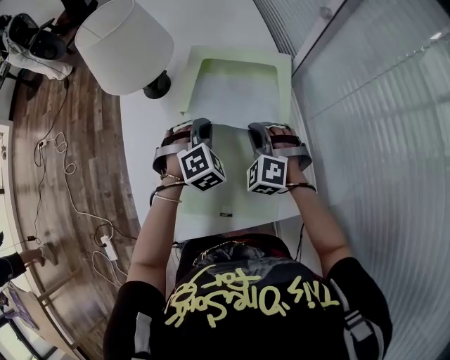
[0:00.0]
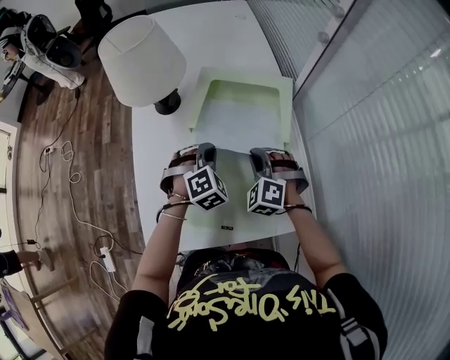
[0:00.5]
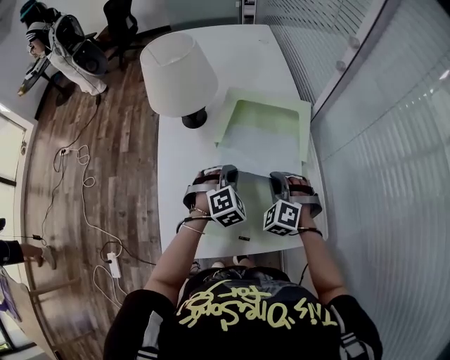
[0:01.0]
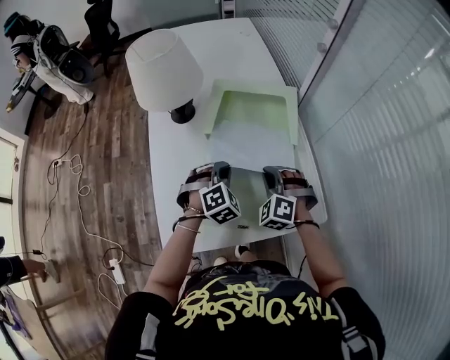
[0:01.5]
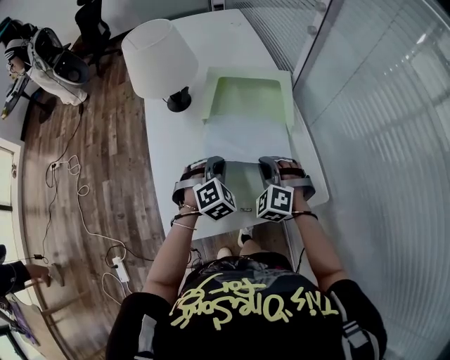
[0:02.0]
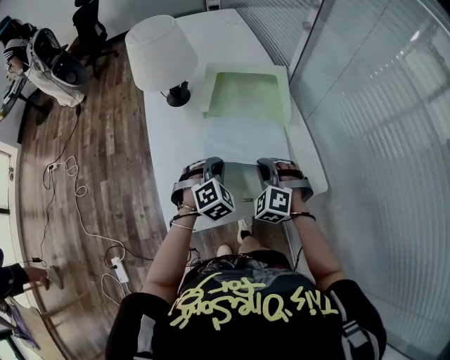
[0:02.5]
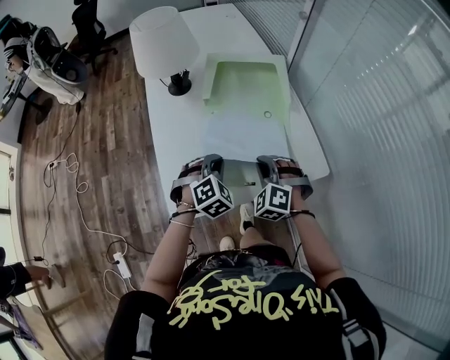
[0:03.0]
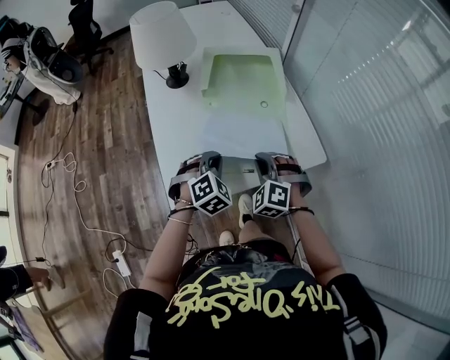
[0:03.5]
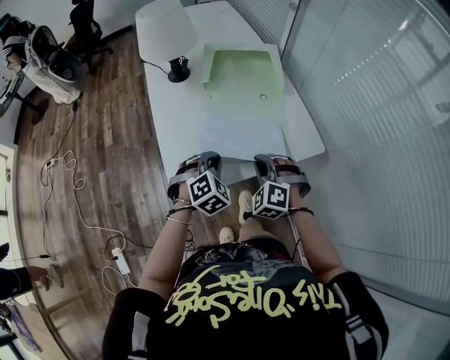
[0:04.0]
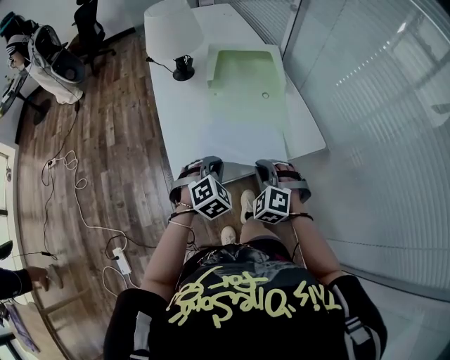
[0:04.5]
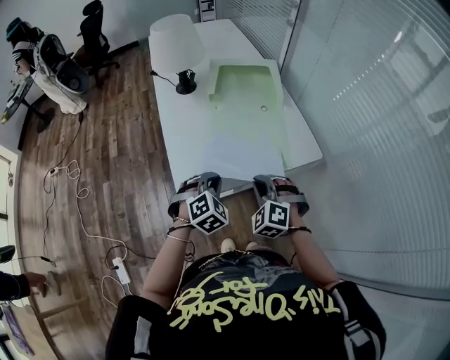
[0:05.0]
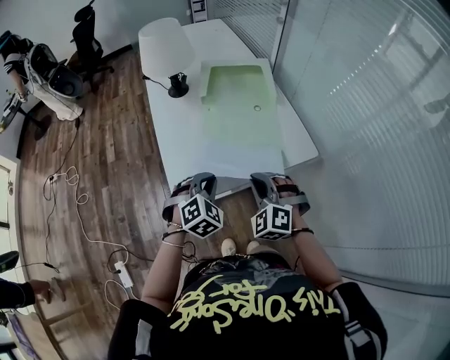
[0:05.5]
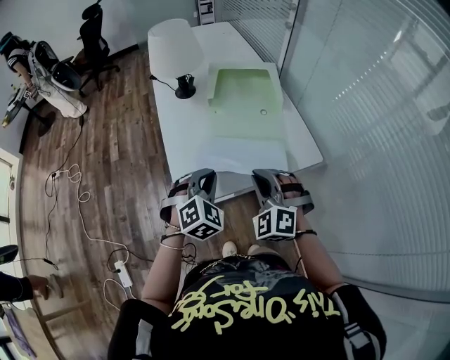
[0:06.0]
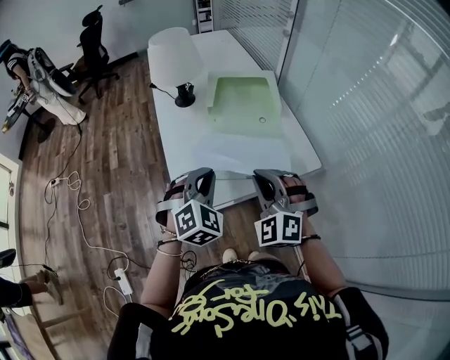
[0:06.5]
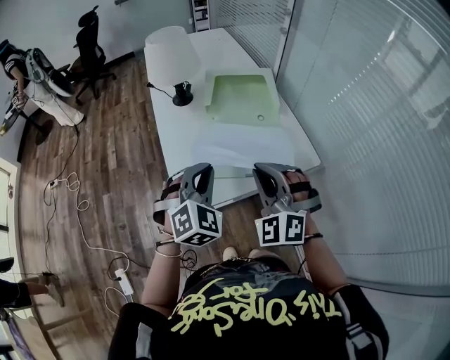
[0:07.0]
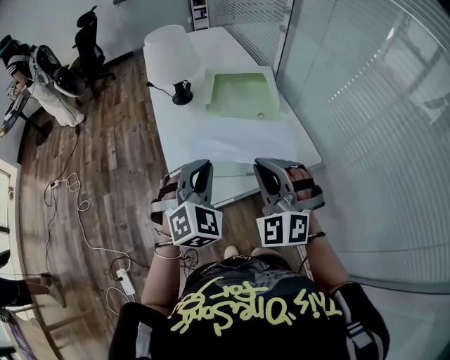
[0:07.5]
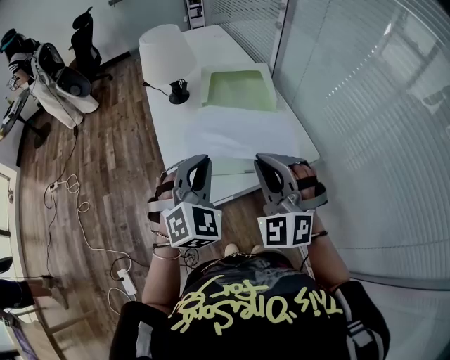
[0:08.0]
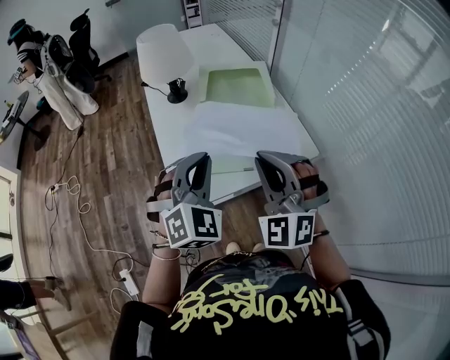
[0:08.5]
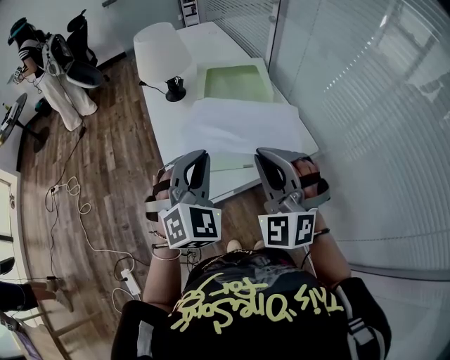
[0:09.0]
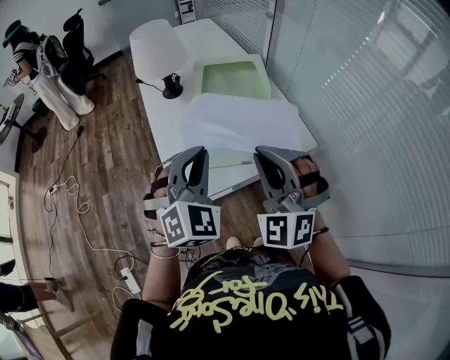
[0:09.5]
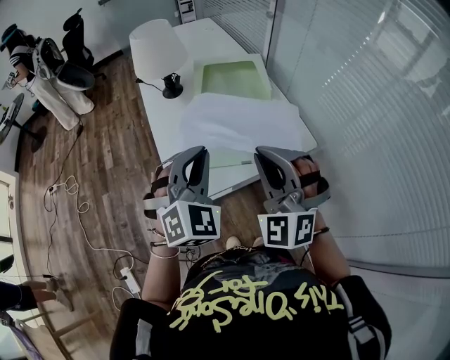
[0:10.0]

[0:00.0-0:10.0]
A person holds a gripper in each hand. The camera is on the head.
0.0 to 2.0 s: Both grippers move backward, roughly 10 cm.
2.0 to 4.0 s: Both grippers travel together backward, roughly 15 cm.
4.0 to 6.0 s: Both grippers move upward, approximately 10 cm.
6.0 to 8.0 s: Both grippers move upward, roughly 10 cm.
8.0 to 10.0 s: The grippers move only a little.

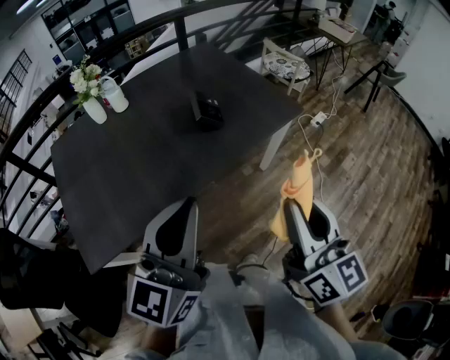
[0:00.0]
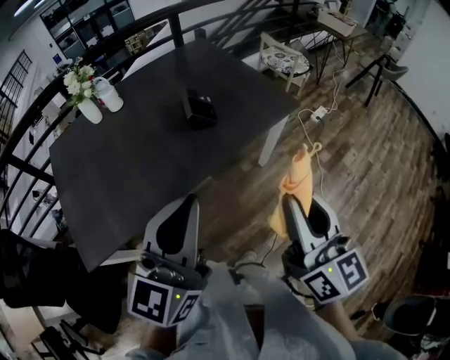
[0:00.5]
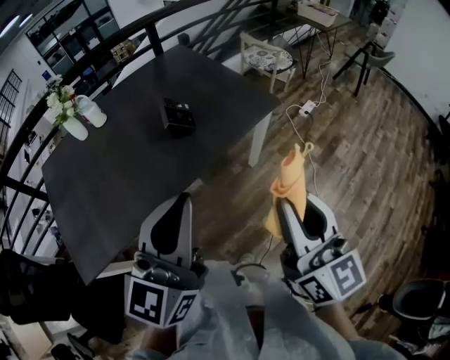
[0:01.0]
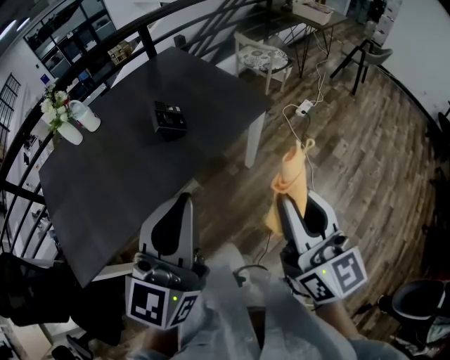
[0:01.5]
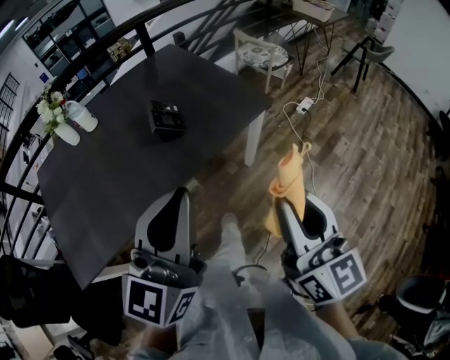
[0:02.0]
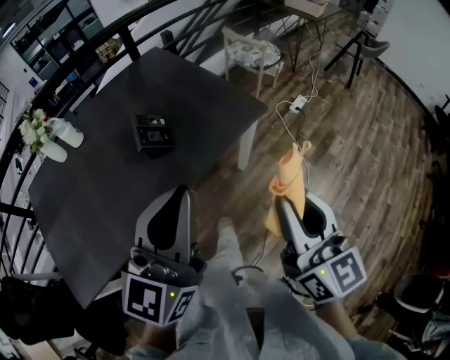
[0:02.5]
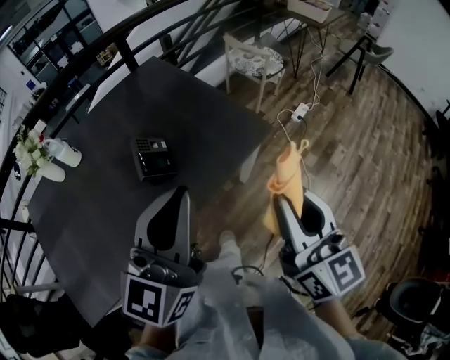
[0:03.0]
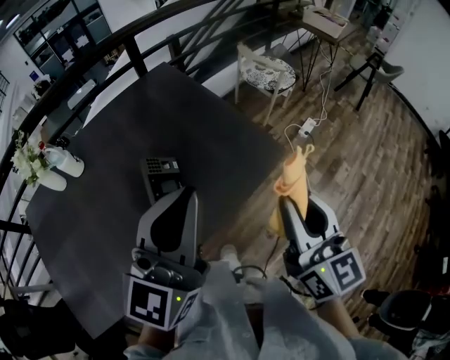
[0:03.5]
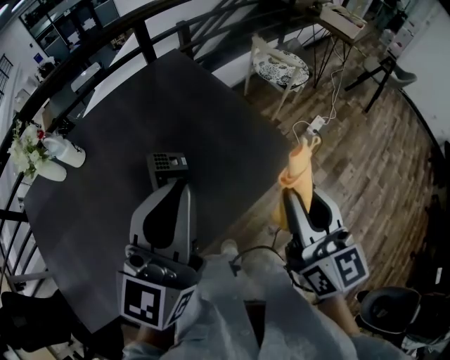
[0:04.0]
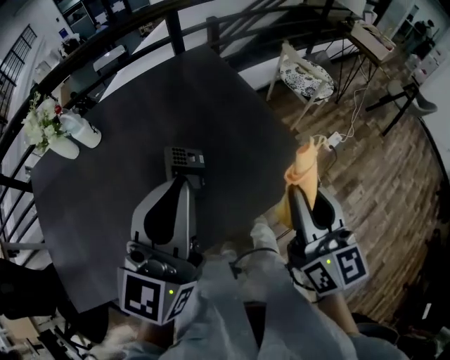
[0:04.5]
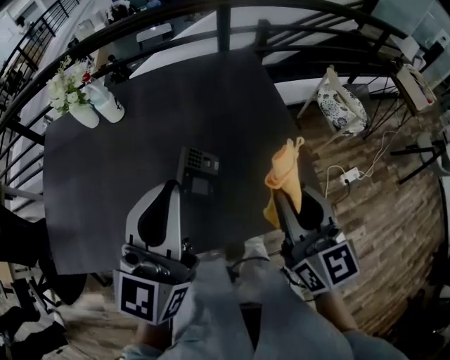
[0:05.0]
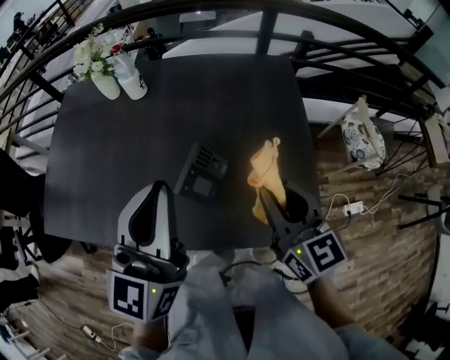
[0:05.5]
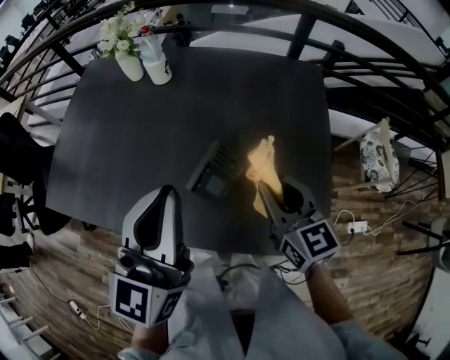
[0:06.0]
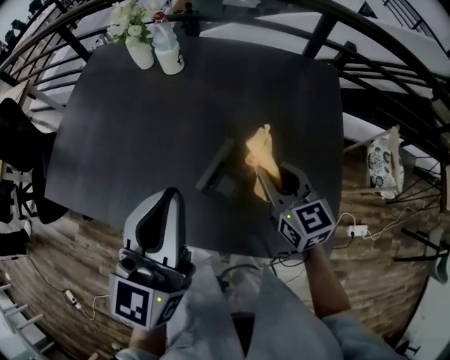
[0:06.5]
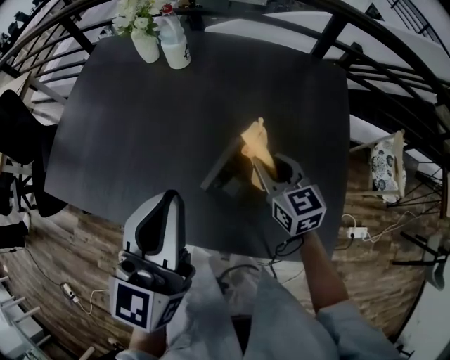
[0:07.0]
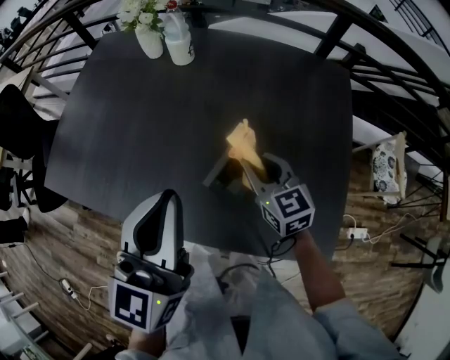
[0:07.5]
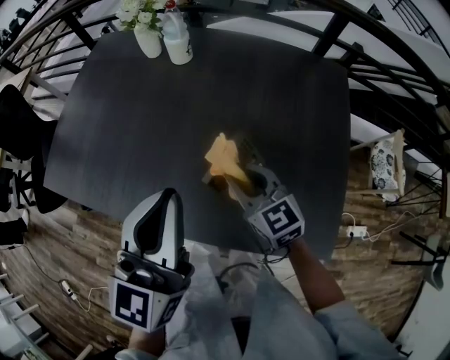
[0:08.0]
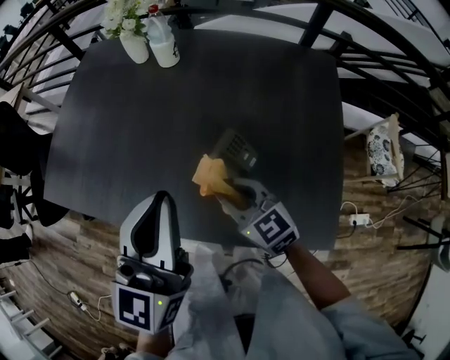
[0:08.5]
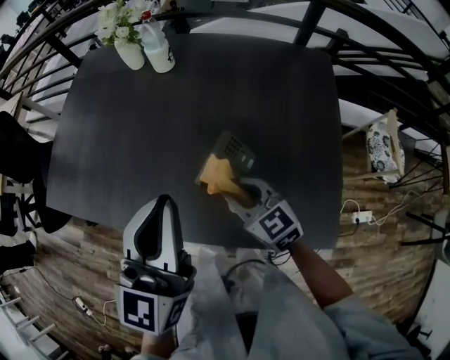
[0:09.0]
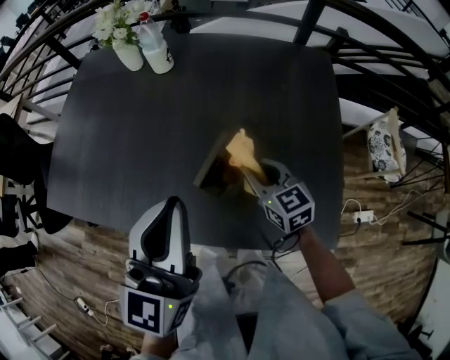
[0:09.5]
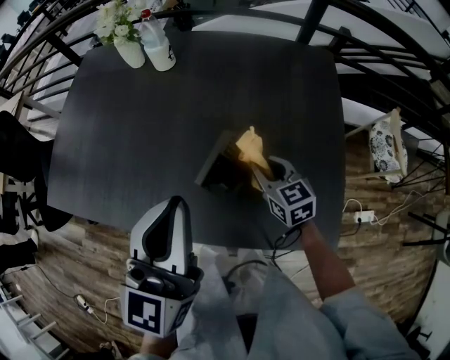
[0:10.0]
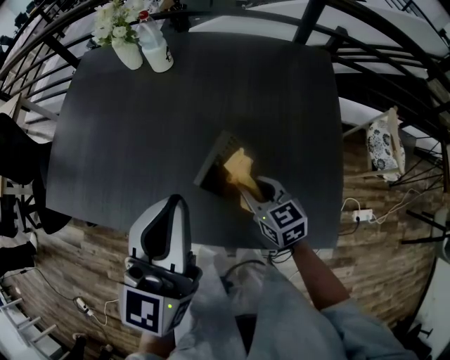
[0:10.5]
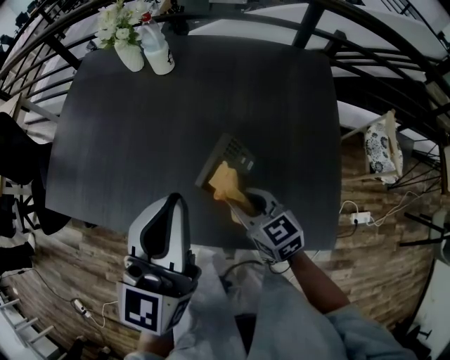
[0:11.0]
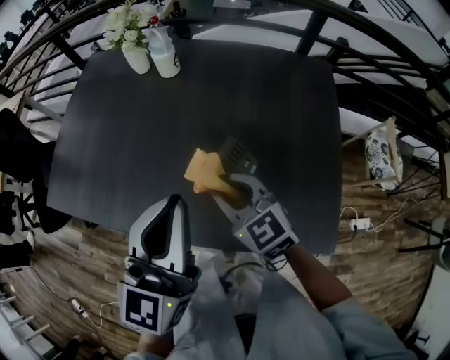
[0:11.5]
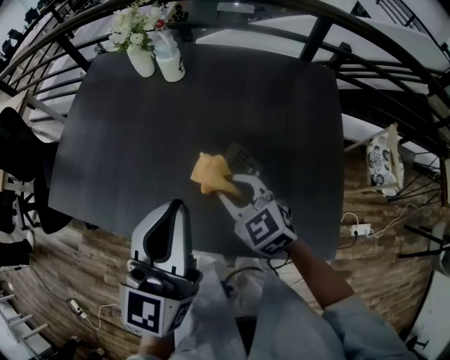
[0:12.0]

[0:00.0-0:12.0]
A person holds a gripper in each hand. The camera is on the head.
0.0 to 2.0 s: The right gripper is displaced to the right by some 10 cm. Meanwhile the left gripper is displaced to the right and forward by about 15 cm.
2.0 to 4.0 s: The two grippers go about 30 cm forward.
4.0 to 6.0 s: The left gripper moves roughly 10 cm, and turns by roughly 50 degrees. The right gripper shifts by some 25 cm, and turns by roughly 60 degrees.
6.0 to 8.0 s: The left gripper changes place by about 5 cm. Meanwhile the right gripper shifts about 15 cm to the left and downward.
8.0 to 10.0 s: The right gripper shifts some 10 cm to the right and downward.
10.0 to 12.0 s: The right gripper heads to the left and upward, covering about 15 cm, and swivels roughly 30 degrees.

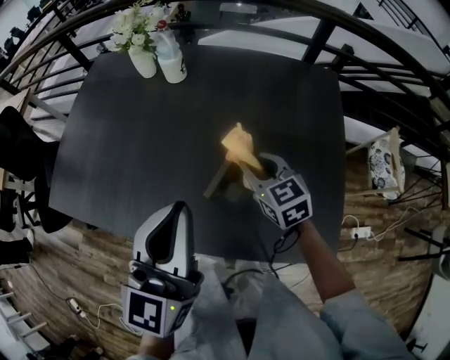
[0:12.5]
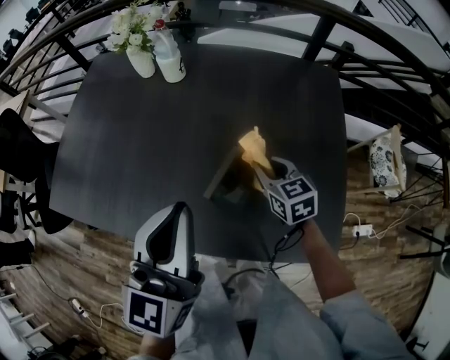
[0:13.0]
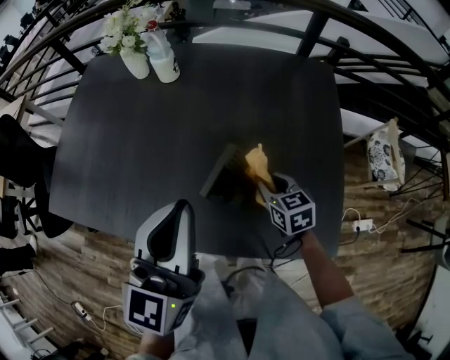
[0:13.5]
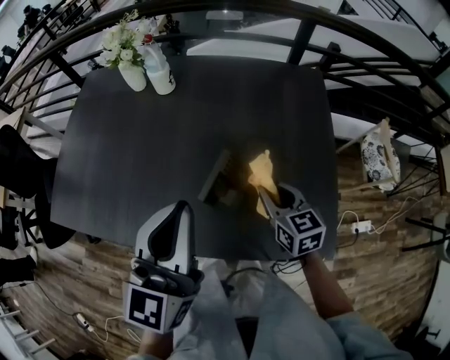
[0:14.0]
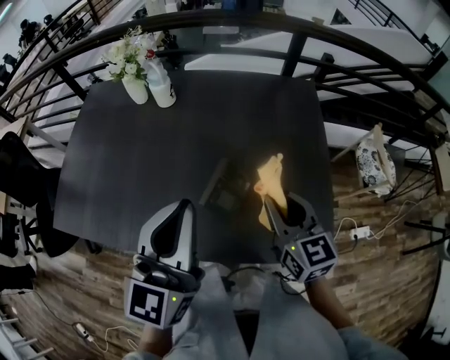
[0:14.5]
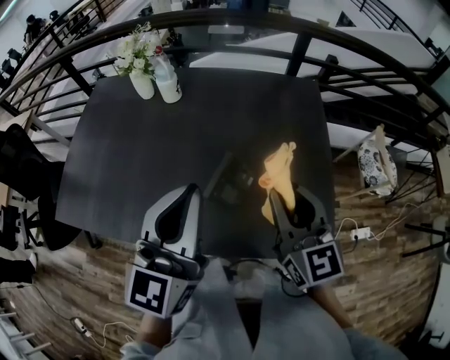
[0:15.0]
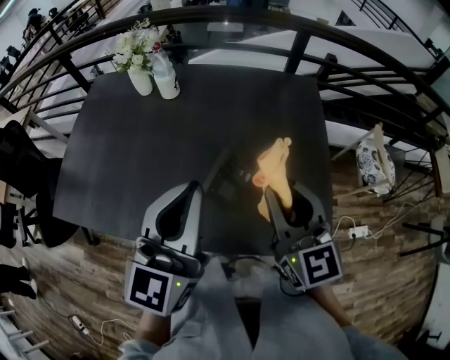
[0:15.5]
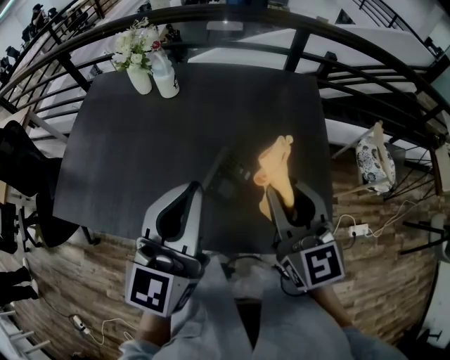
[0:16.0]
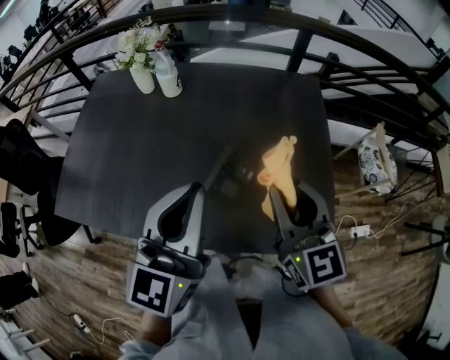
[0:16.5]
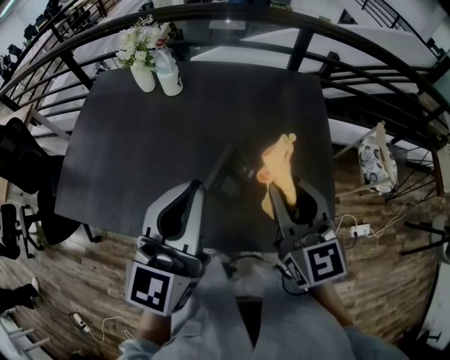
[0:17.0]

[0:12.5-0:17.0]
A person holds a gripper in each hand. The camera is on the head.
12.5 to 14.5 s: The right gripper heads backward, upward and to the right, covering some 15 cm, and changes its angle by some 20 degrees.
14.5 to 17.0 s: The right gripper goes approximately 10 cm upward.

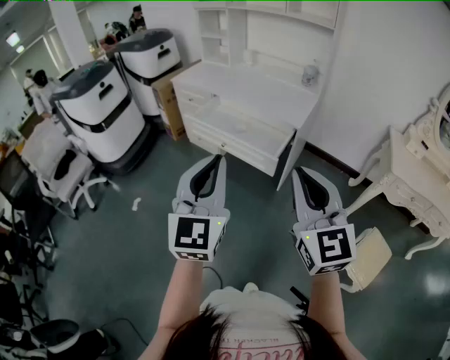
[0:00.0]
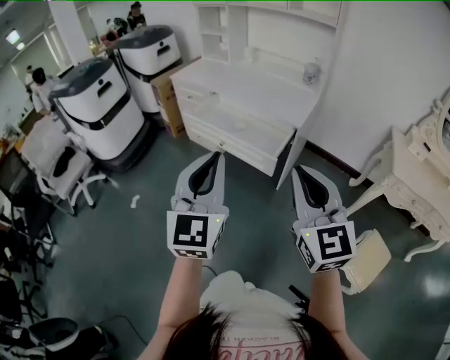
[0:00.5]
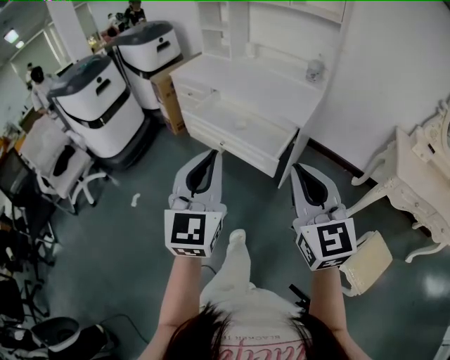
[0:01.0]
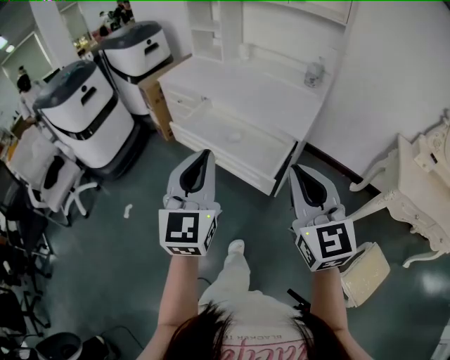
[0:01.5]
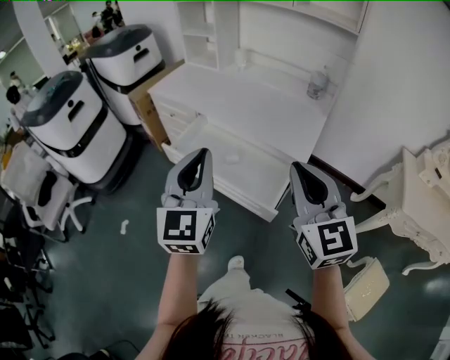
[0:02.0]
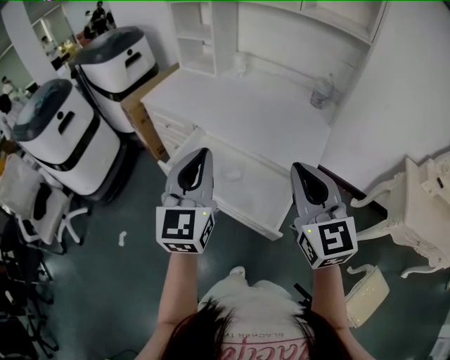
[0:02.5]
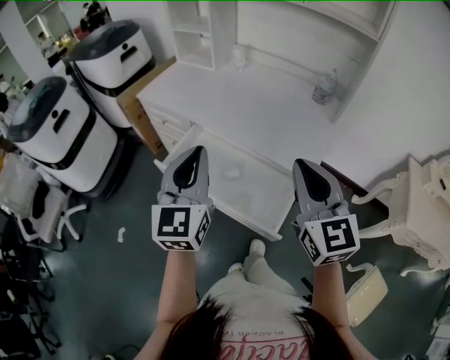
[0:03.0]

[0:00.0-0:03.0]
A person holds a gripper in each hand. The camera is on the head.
0.0 to 1.5 s: Both grippers move forward, about 15 cm.
1.5 to 3.0 s: Both grippers travel together forward, some 25 cm.
